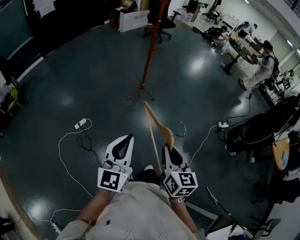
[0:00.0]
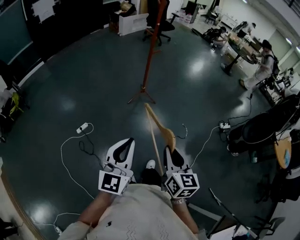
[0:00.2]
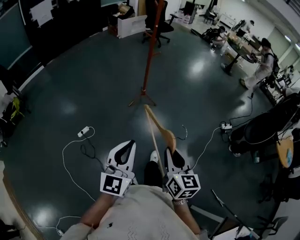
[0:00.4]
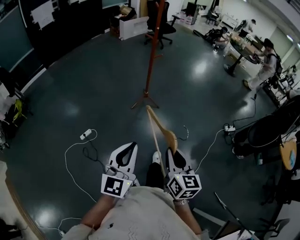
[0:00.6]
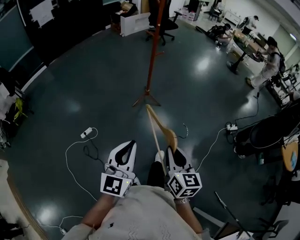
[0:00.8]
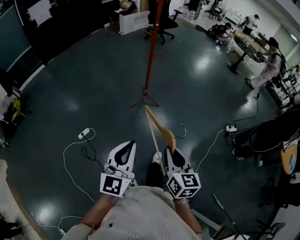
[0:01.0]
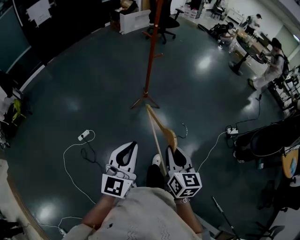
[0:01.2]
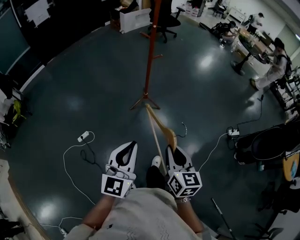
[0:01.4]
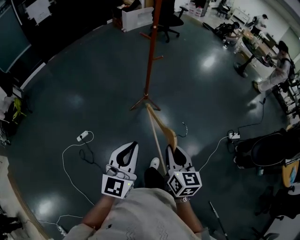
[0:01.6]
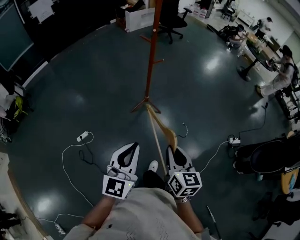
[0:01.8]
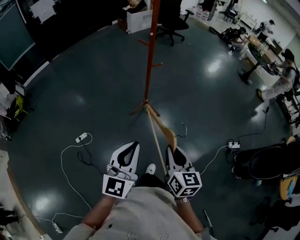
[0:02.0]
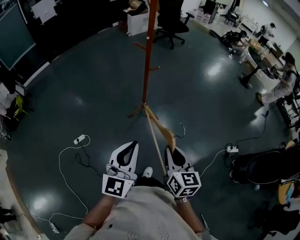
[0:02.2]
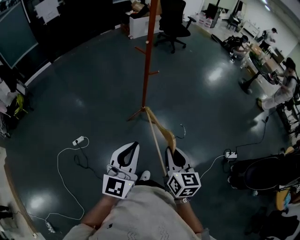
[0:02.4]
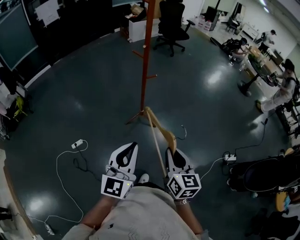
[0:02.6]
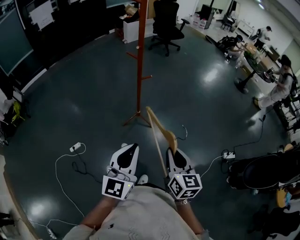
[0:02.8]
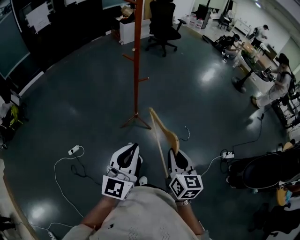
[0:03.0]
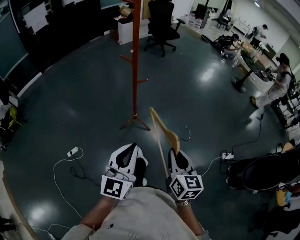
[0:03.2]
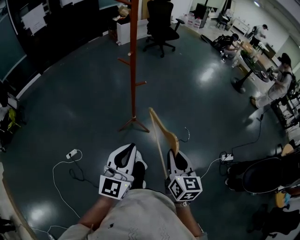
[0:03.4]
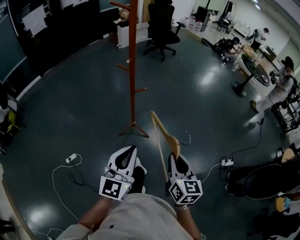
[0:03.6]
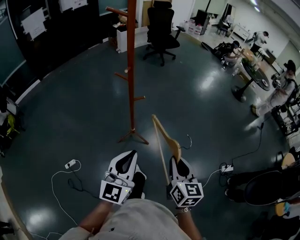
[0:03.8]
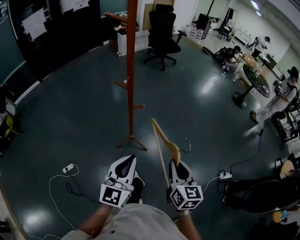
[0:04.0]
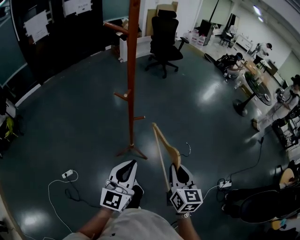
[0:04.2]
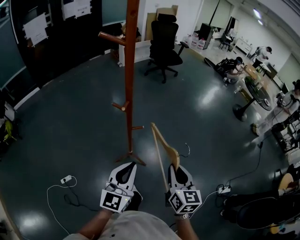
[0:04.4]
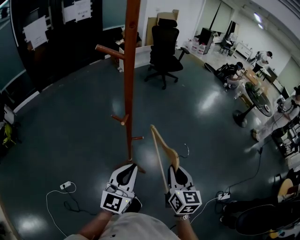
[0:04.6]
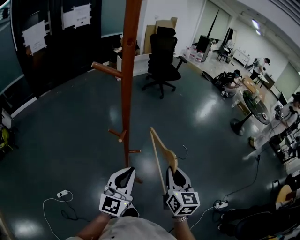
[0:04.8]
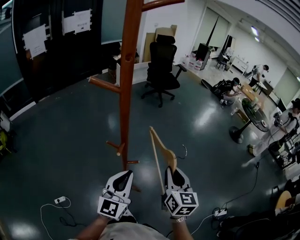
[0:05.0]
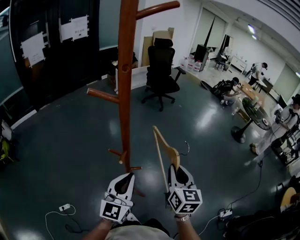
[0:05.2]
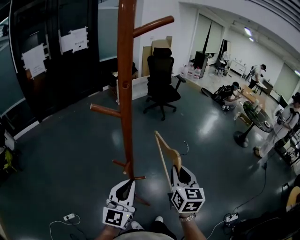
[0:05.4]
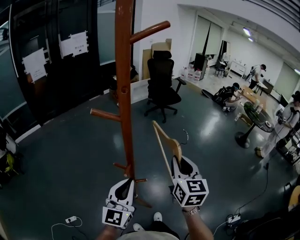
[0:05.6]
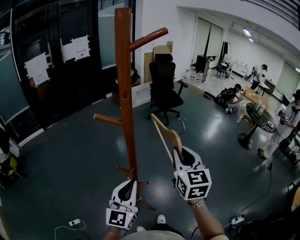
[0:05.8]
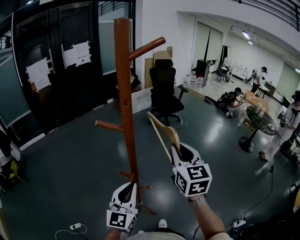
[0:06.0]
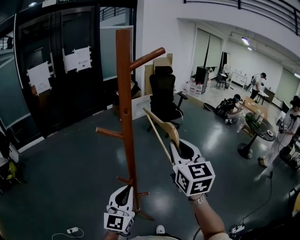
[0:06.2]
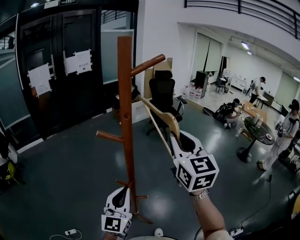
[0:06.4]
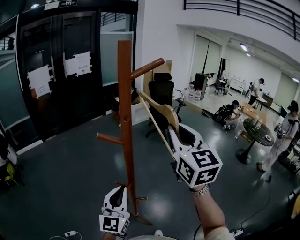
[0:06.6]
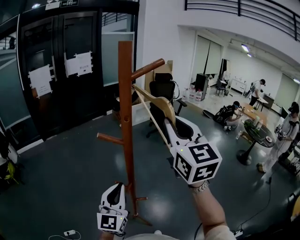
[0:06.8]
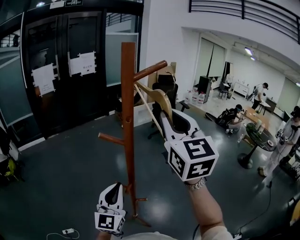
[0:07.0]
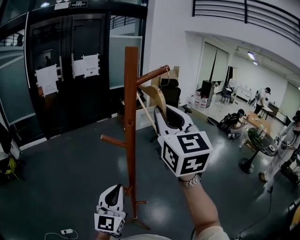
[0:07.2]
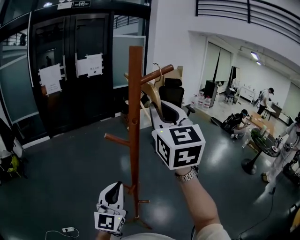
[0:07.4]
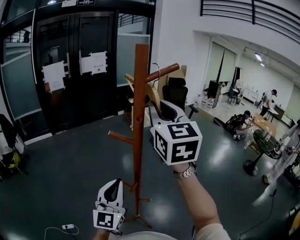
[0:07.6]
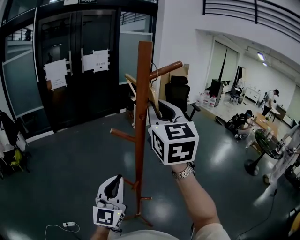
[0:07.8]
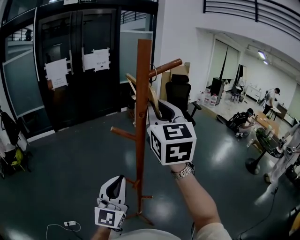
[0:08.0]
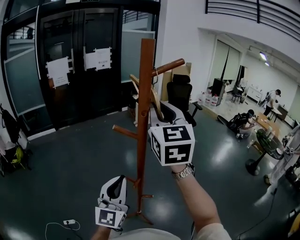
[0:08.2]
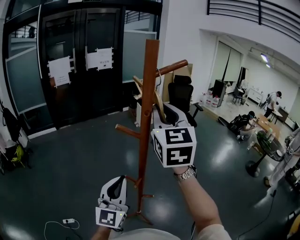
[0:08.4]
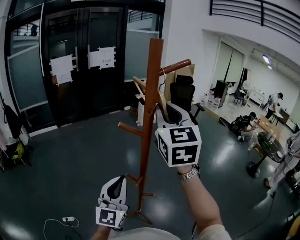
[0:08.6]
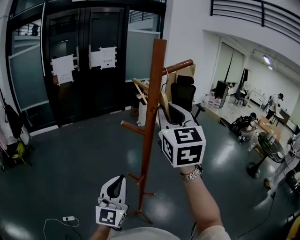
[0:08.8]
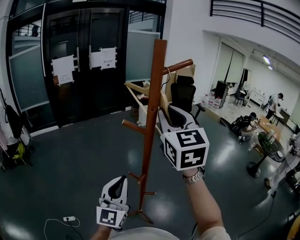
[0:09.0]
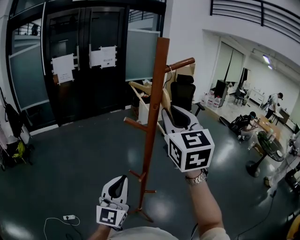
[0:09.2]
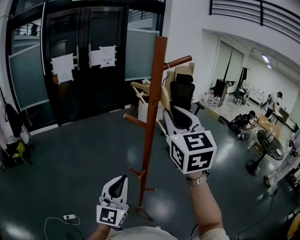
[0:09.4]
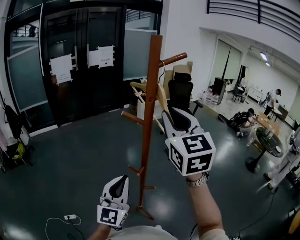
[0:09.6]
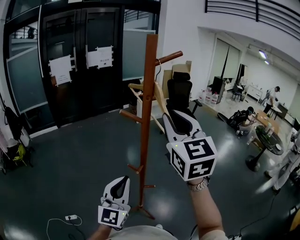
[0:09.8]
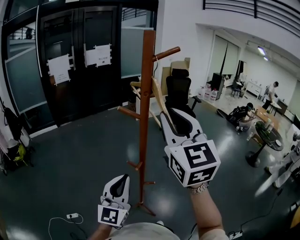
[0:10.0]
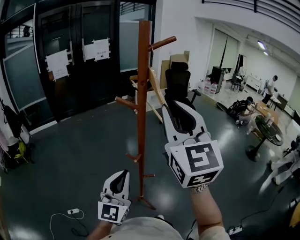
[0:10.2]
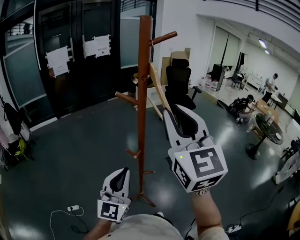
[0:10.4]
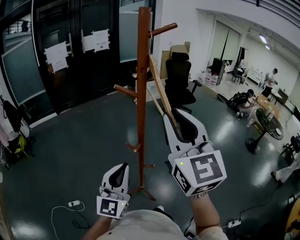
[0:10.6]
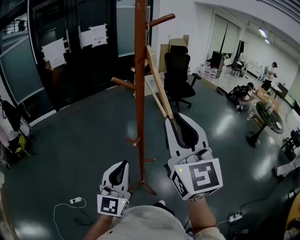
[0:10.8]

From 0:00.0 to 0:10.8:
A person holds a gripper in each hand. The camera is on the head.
From 0:00.0 to 0:01.6: The grippers both shift forward by about 25 cm.
From 0:01.6 to 0:03.0: The grippers both shift forward and to the right by approximately 20 cm.
From 0:03.0 to 0:04.6: The two grippers go about 35 cm forward.
From 0:04.6 to 0:06.2: The right gripper is displaced upward and forward by roughly 35 cm, and turns by roughly 20 degrees; the left gripper heads forward, upward and to the left, covering some 15 cm.
From 0:06.2 to 0:07.8: The left gripper heads upward, covering approximately 10 cm. The right gripper goes some 20 cm upward and to the left.
From 0:07.8 to 0:09.2: The right gripper heads backward, covering approximately 5 cm. Meanwhile the left gripper shifts by some 5 cm.
From 0:09.2 to 0:10.8: The left gripper shifts roughly 10 cm backward. Meanwhile the right gripper goes roughly 15 cm backward and downward.

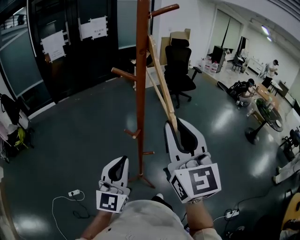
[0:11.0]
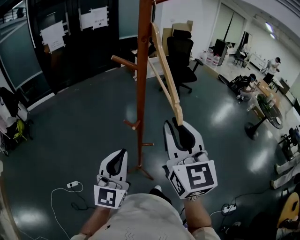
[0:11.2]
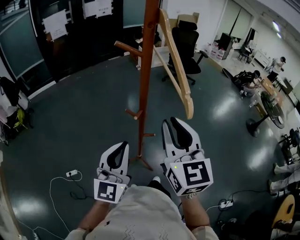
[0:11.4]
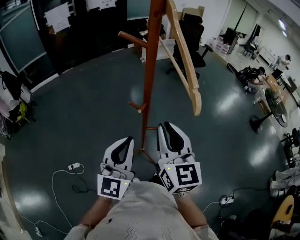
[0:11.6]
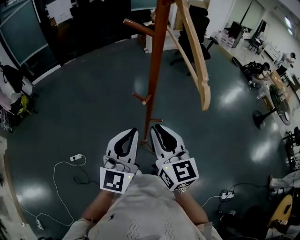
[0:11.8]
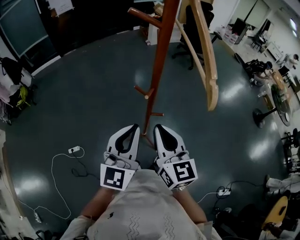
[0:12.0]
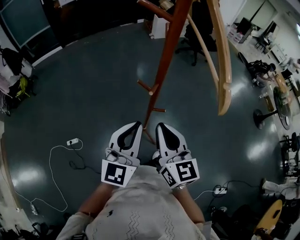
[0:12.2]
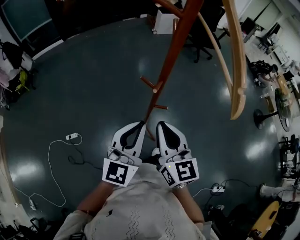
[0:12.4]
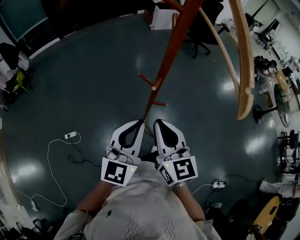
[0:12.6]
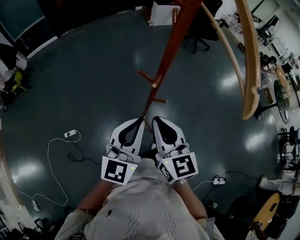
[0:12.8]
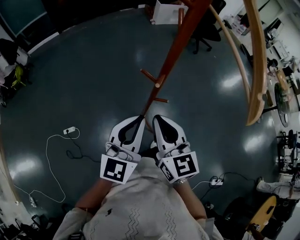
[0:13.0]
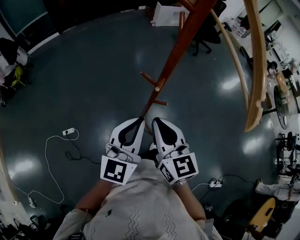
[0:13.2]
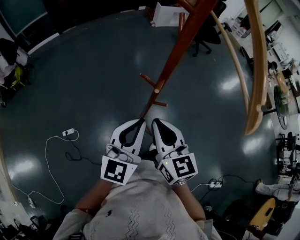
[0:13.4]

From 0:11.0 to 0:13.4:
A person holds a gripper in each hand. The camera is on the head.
From 0:11.0 to 0:12.2: The right gripper shifts approximately 20 cm downward, and turns by approximately 20 degrees, while the left gripper moves approximately 5 cm.
From 0:12.2 to 0:13.4: The right gripper moves roughly 5 cm.

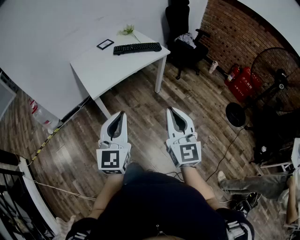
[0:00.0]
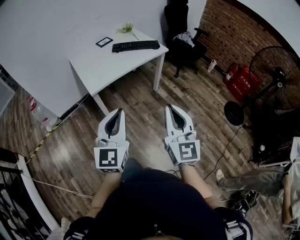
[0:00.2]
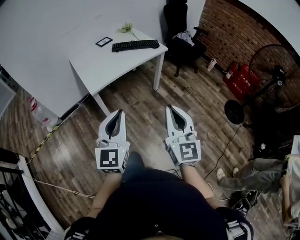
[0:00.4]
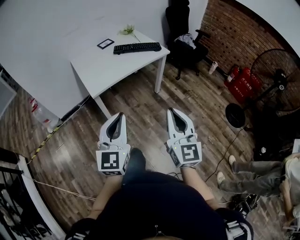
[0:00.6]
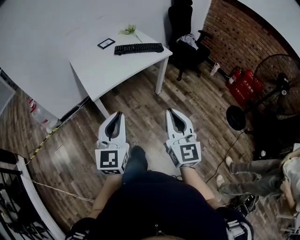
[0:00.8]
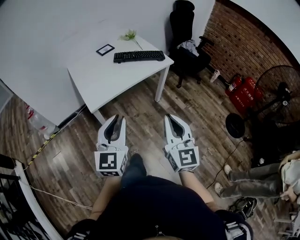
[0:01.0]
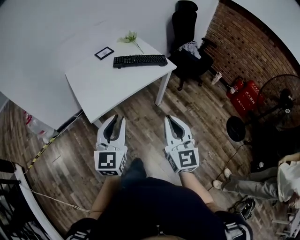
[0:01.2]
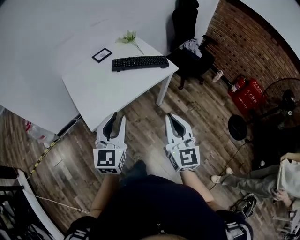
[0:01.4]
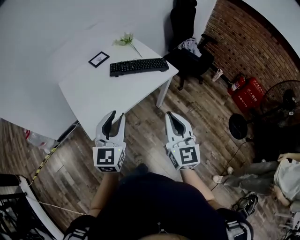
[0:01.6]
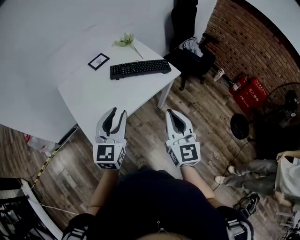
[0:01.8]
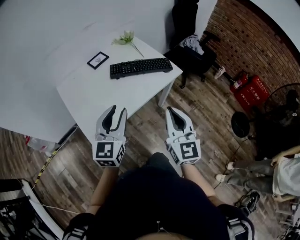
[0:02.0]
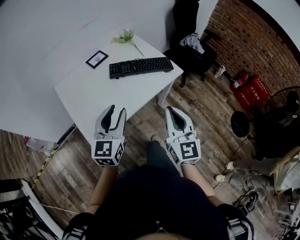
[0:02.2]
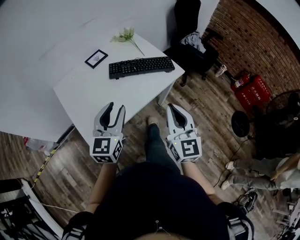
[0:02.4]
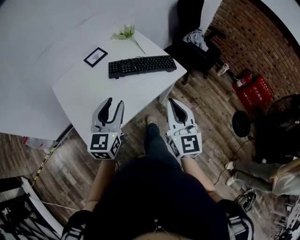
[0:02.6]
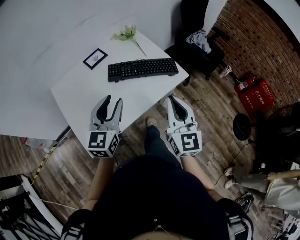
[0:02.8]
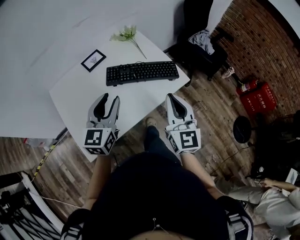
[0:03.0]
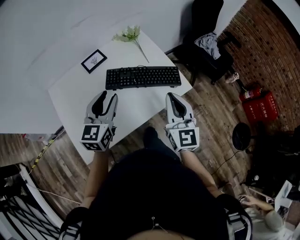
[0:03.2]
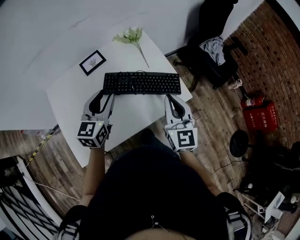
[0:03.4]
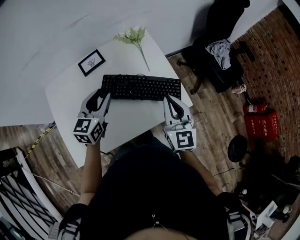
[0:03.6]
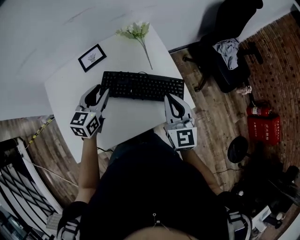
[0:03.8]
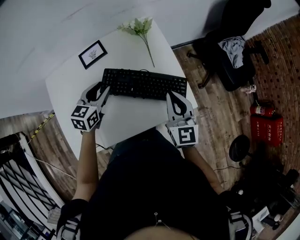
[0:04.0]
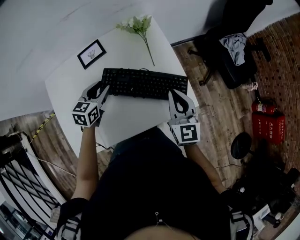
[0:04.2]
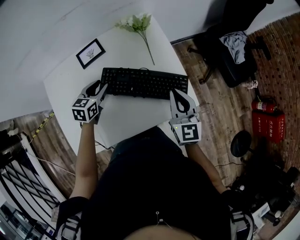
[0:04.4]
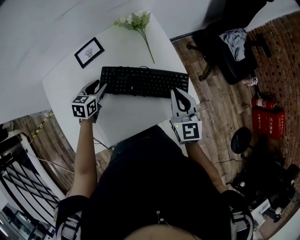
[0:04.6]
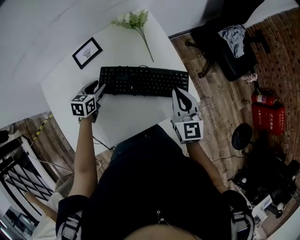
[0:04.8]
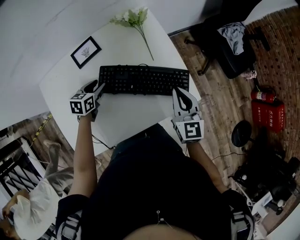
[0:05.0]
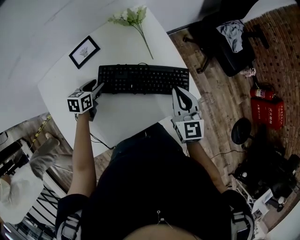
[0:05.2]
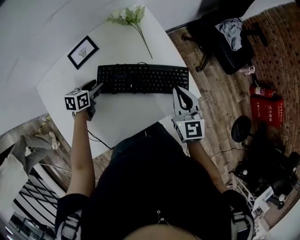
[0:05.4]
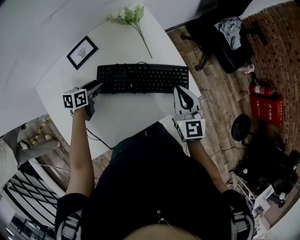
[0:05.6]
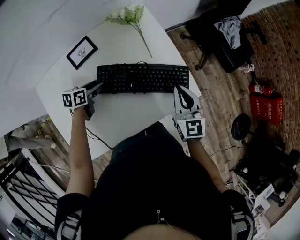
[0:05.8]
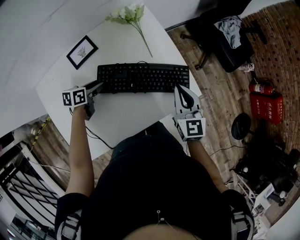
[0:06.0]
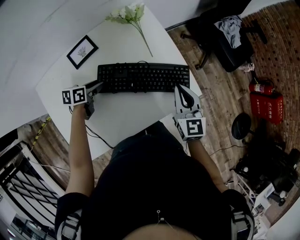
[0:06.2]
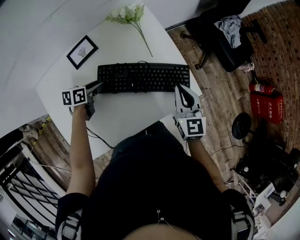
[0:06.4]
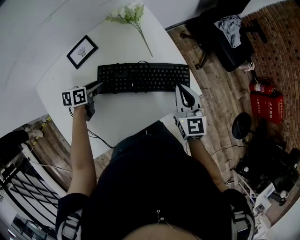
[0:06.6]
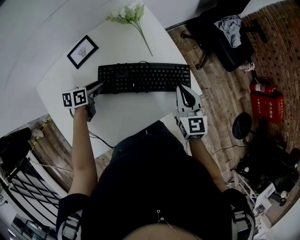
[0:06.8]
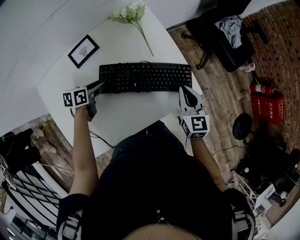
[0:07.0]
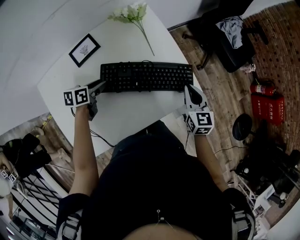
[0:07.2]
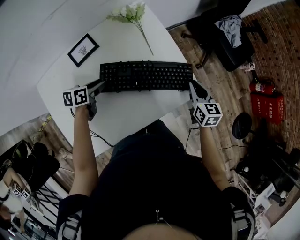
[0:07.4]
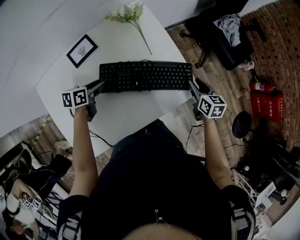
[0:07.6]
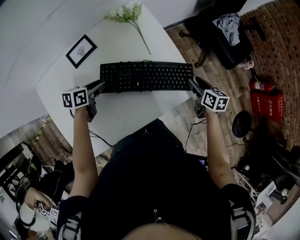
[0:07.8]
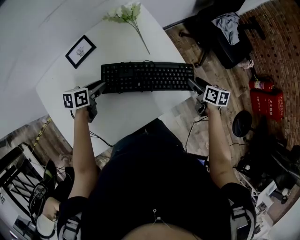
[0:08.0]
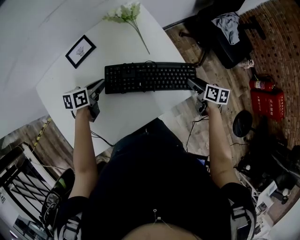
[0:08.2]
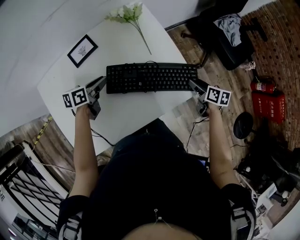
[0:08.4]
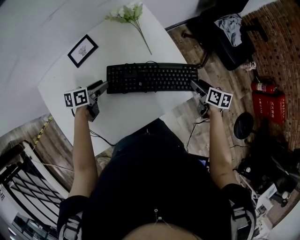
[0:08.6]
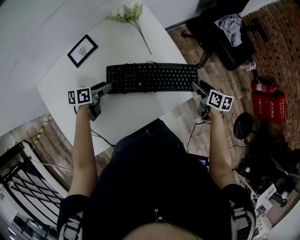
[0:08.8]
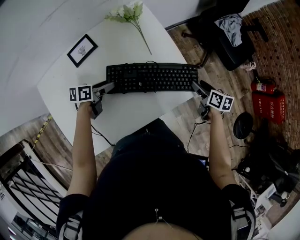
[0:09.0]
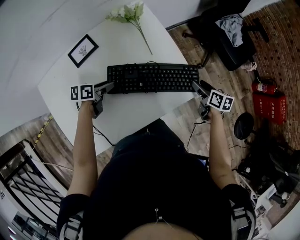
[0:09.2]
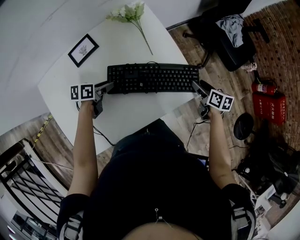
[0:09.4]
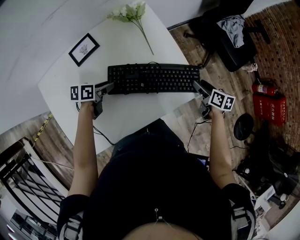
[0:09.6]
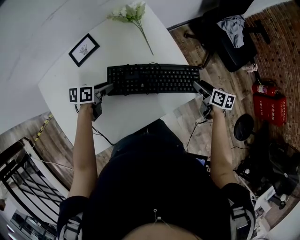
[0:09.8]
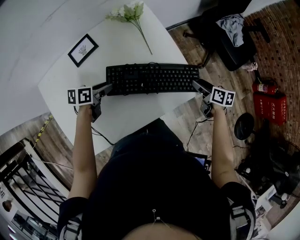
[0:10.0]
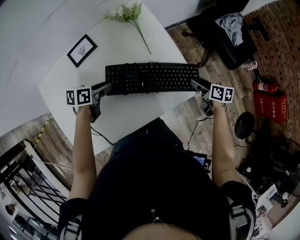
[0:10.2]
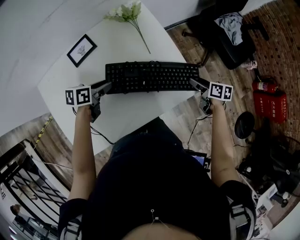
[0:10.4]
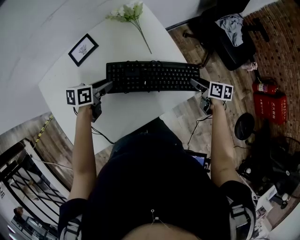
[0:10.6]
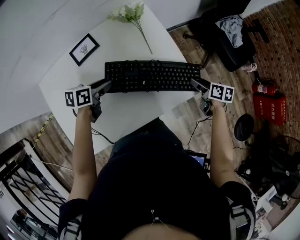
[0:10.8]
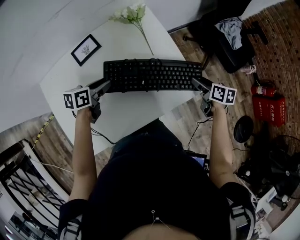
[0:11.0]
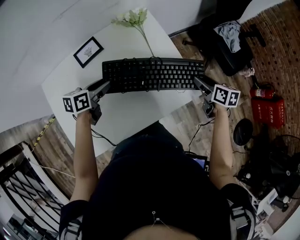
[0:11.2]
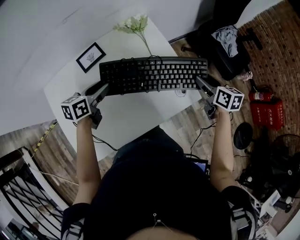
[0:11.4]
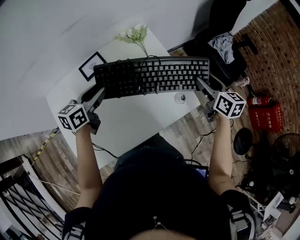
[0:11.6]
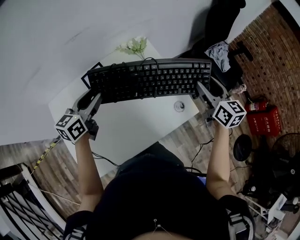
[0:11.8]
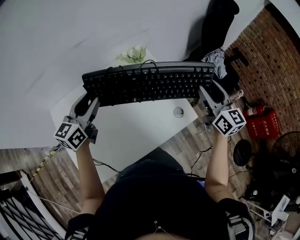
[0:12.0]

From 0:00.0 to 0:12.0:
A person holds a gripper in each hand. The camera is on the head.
From 0:00.0 to 0:01.6: The grippers both shift forward by about 30 cm. The left gripper opens.
From 0:01.6 to 0:03.0: The grippers both shift forward by some 25 cm.
From 0:03.0 to 0:04.4: The grippers both shift forward and downward by some 30 cm. The right gripper rotates some 20 degrees. Meanwhile the left gripper points its fingers approximately 30 degrees further downward.
From 0:04.4 to 0:06.0: The left gripper shifts roughly 10 cm downward, and turns by approximately 30 degrees.
From 0:06.0 to 0:07.6: The right gripper heads downward and to the right, covering about 15 cm, swivels about 30 degrees, and opens its fingers.
From 0:07.6 to 0:09.0: The right gripper moves approximately 5 cm, turns by roughly 20 degrees, and opens its fingers, while the left gripper closes and opens again.
From 0:09.0 to 0:10.4: There are only small adjustments of the grippers.
From 0:10.4 to 0:12.0: The grippers both shift upward by approximately 30 cm. The right gripper tips its fingers upward by about 40 degrees; the left gripper tilts its fingers some 30 degrees upward.
